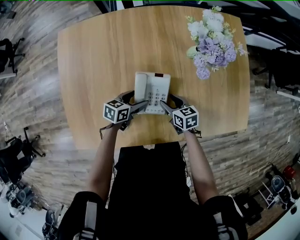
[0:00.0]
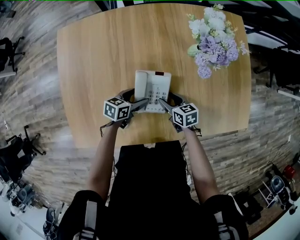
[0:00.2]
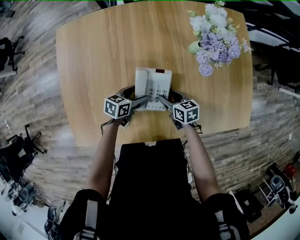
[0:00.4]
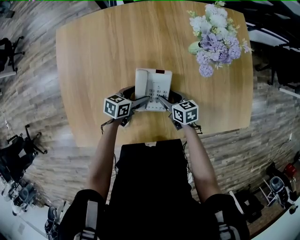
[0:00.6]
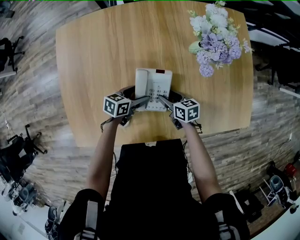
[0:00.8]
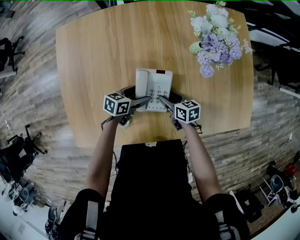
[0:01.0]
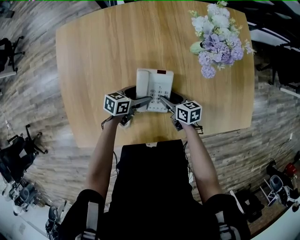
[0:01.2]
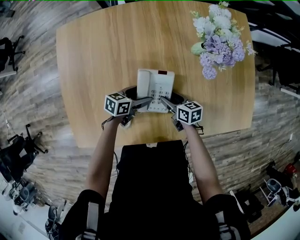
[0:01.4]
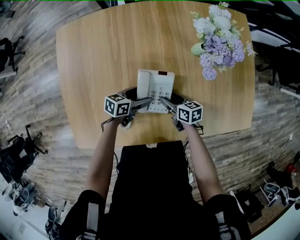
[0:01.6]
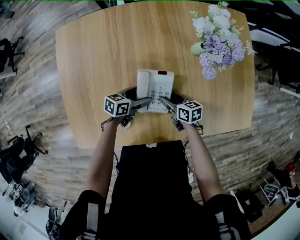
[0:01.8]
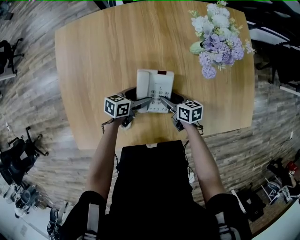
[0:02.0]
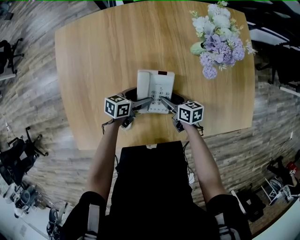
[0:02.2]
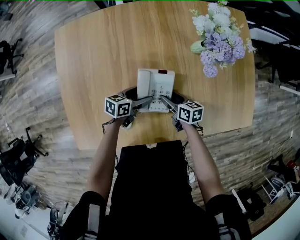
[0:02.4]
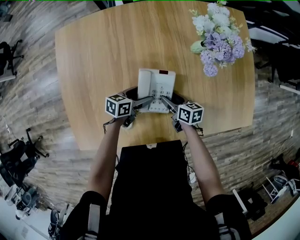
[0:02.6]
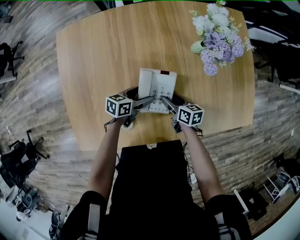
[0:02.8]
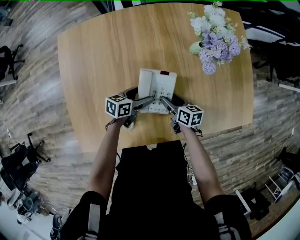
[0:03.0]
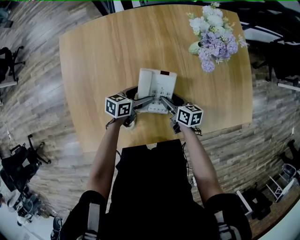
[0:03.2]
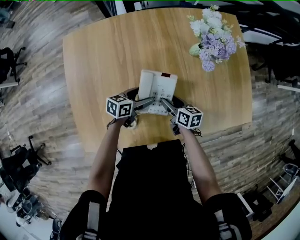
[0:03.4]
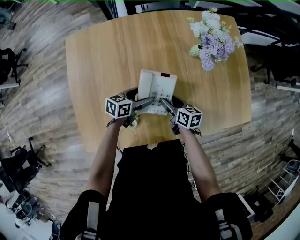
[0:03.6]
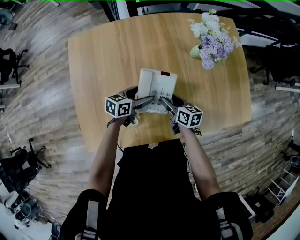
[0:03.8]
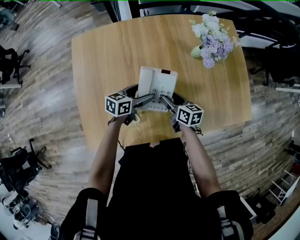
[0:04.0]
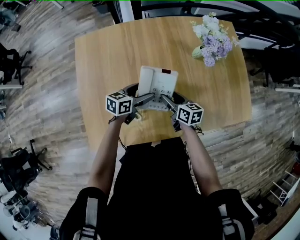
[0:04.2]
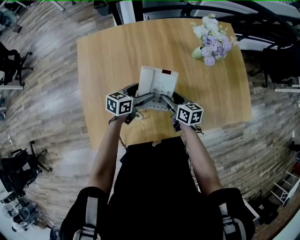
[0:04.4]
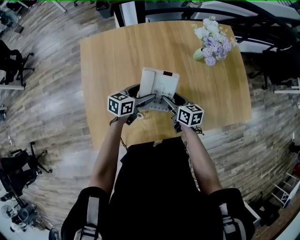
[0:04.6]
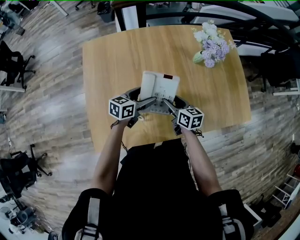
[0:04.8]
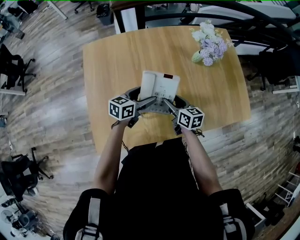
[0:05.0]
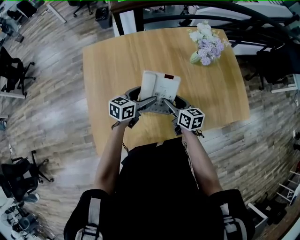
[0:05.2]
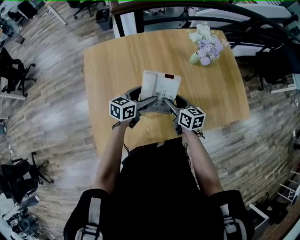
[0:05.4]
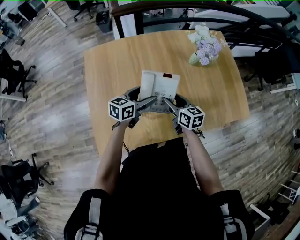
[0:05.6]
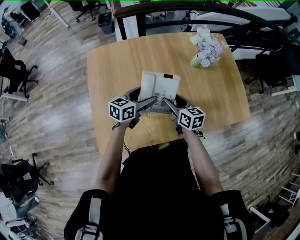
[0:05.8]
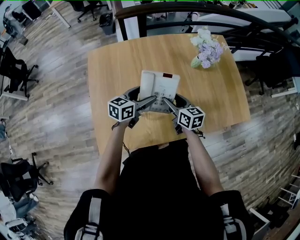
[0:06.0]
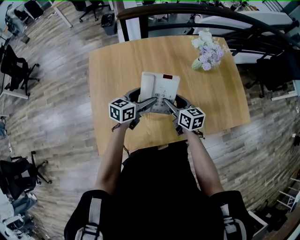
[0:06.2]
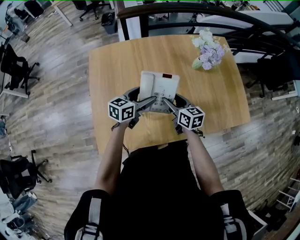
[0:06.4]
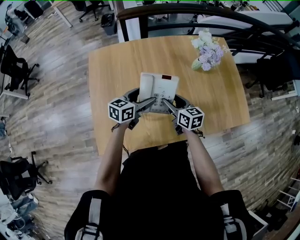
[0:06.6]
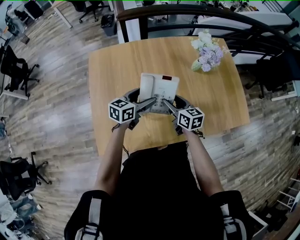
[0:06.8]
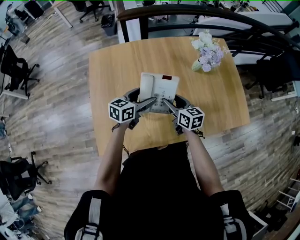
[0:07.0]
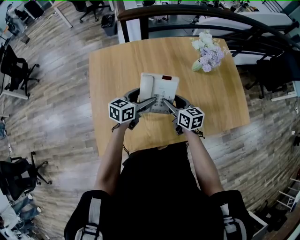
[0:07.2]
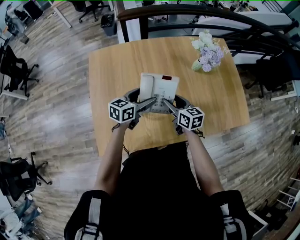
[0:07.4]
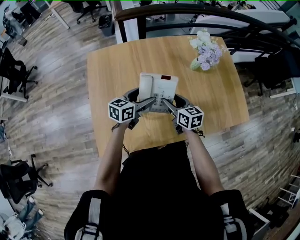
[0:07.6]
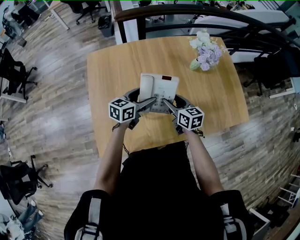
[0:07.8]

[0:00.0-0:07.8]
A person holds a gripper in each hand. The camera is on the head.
0:00.0 to 0:01.6: The grippers move only a little.
0:01.6 to 0:03.2: There are only small adjustments of the grippers.
0:03.2 to 0:04.6: Both grippers travel together upward and to the left, roughly 10 cm.
0:04.6 to 0:06.2: The grippers both shift upward by about 10 cm.
0:06.2 to 0:07.8: Neither gripper changes place.

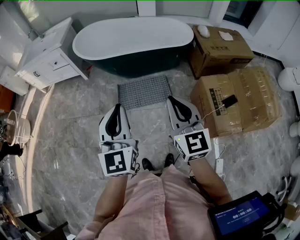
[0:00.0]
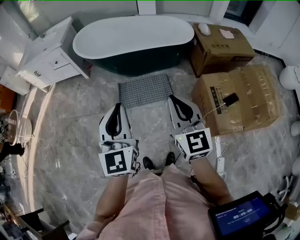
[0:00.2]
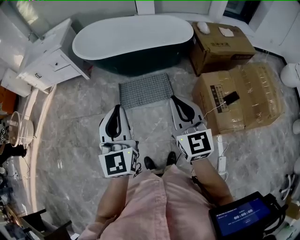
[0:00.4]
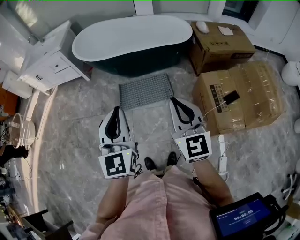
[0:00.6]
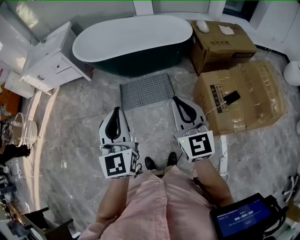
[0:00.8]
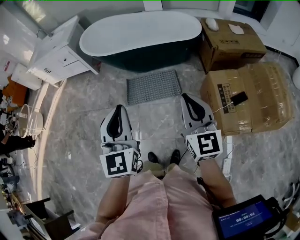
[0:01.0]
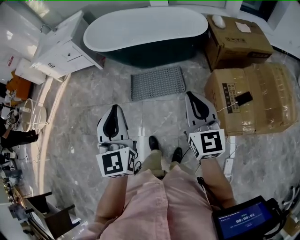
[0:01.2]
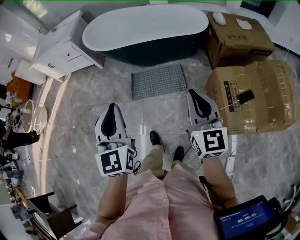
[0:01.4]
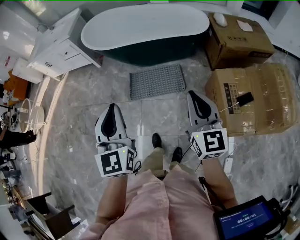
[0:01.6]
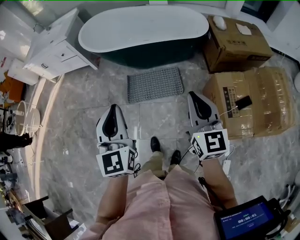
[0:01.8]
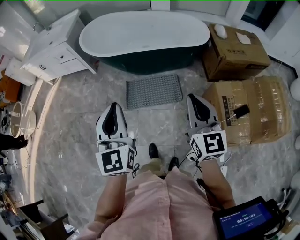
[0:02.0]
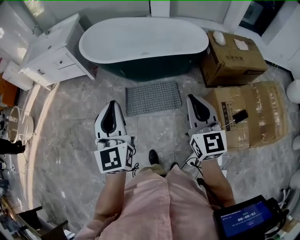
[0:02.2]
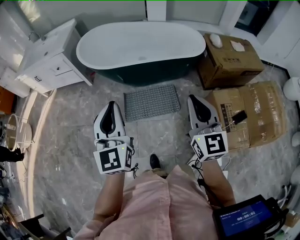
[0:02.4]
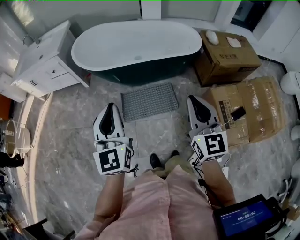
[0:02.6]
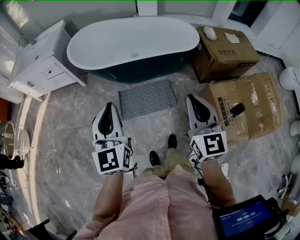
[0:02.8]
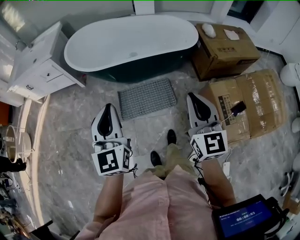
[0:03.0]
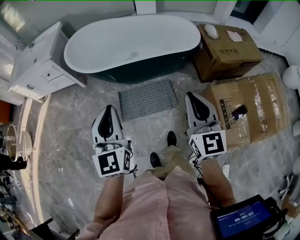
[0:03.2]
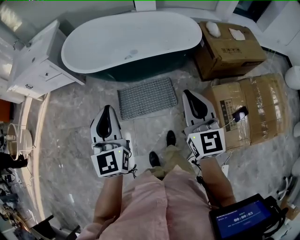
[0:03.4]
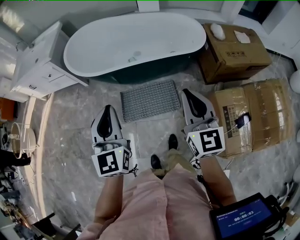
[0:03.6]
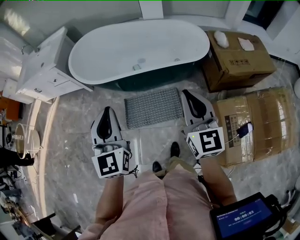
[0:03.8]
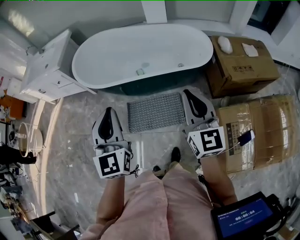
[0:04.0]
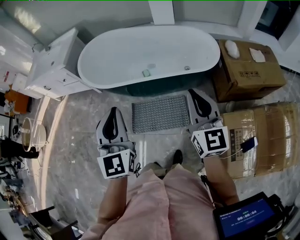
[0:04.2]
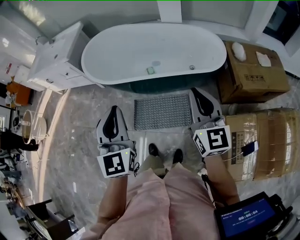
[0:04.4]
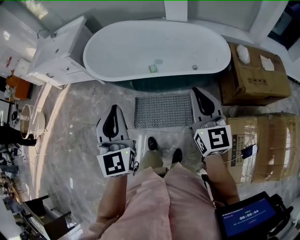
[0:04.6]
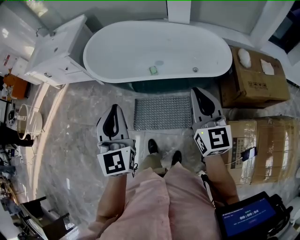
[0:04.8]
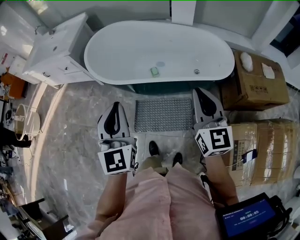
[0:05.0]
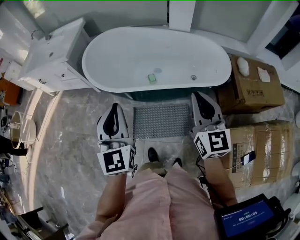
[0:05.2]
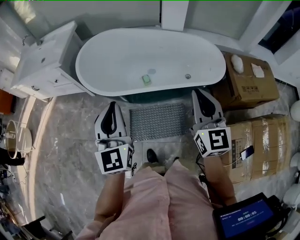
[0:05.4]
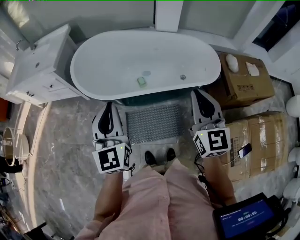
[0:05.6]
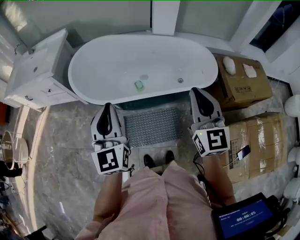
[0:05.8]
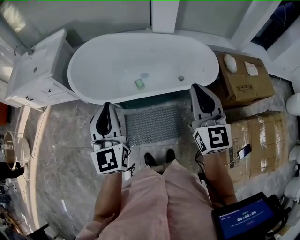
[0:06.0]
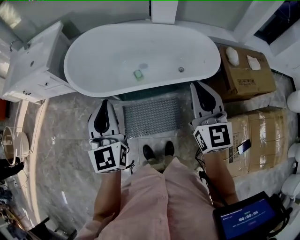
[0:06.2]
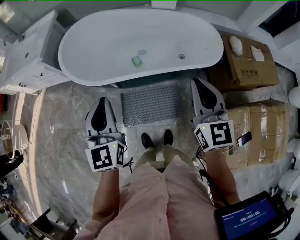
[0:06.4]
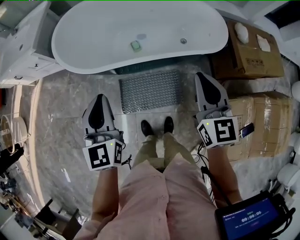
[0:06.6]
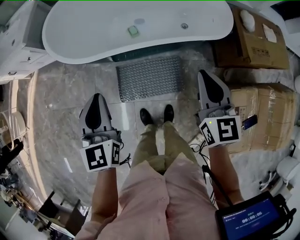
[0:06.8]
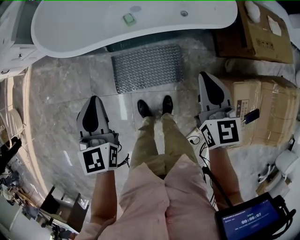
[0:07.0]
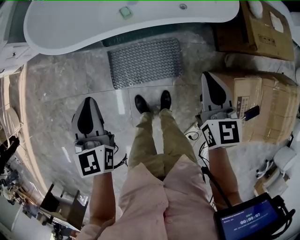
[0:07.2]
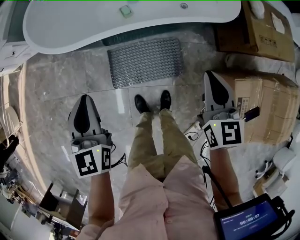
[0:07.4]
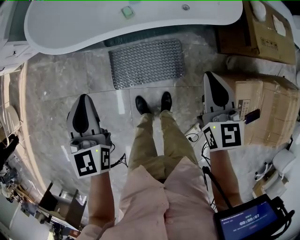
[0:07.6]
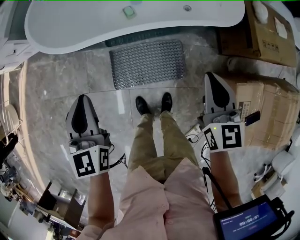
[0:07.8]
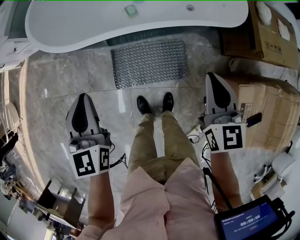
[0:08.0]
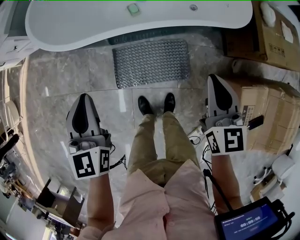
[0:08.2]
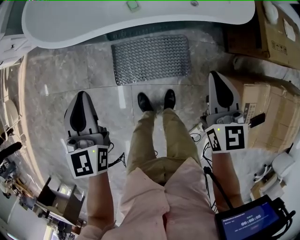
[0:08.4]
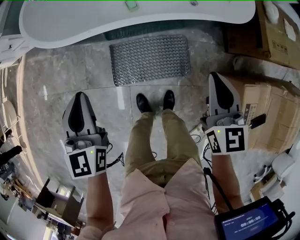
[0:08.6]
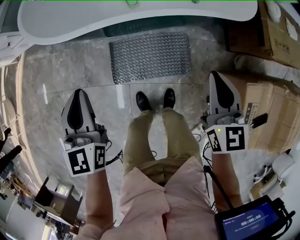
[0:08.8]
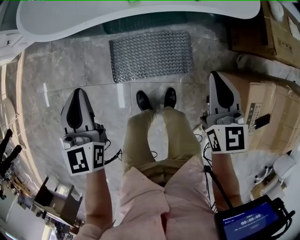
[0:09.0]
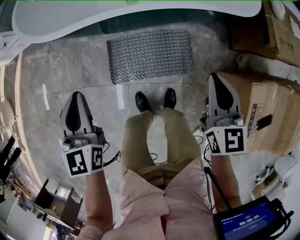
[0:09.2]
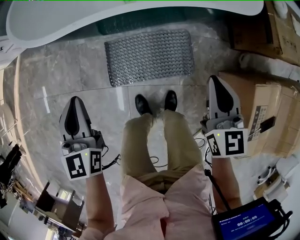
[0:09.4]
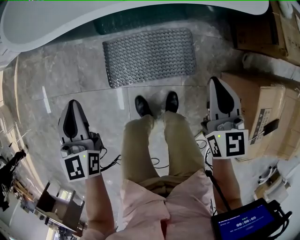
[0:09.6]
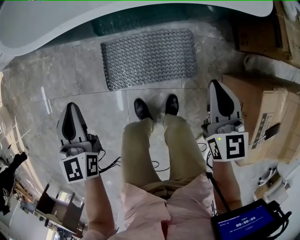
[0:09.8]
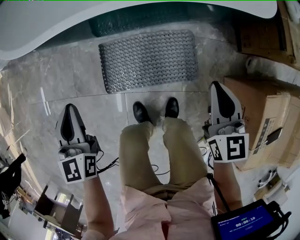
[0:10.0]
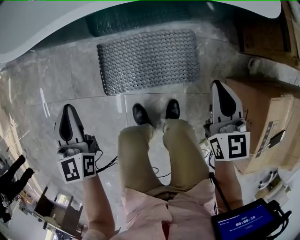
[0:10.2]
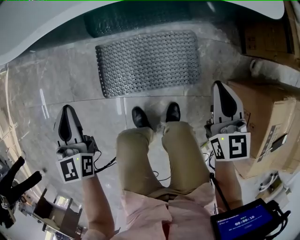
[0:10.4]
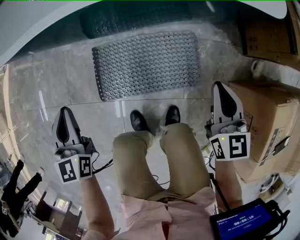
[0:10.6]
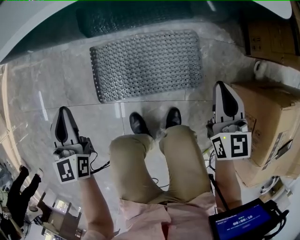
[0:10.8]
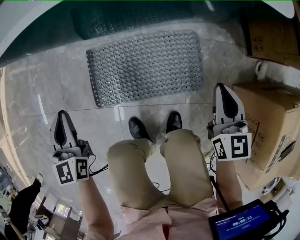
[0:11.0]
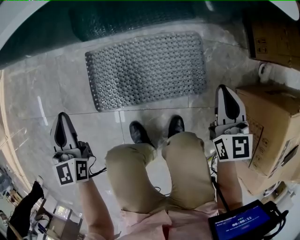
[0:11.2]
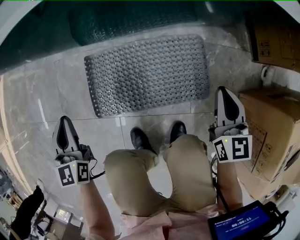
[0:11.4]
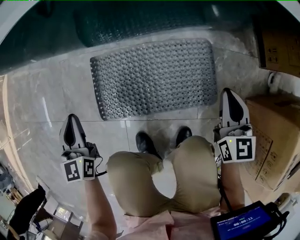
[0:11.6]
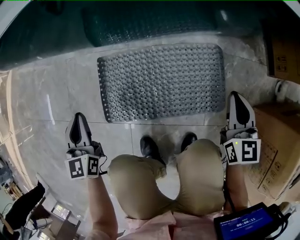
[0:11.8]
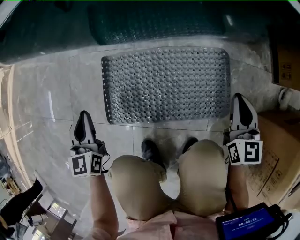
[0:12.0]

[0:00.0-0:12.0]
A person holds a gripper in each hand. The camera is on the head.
0:00.0 to 0:01.6: The right gripper moves to the right, approximately 10 cm.
0:01.6 to 0:03.0: The grippers both shift forward and to the left by approximately 15 cm.
0:03.0 to 0:04.4: The right gripper goes about 20 cm forward; the left gripper moves forward and to the right, some 20 cm.
0:04.4 to 0:06.0: The grippers both shift forward and to the left by approximately 20 cm.
0:06.0 to 0:07.6: Both grippers move downward, roughly 25 cm. The left gripper swivels some 20 degrees. The right gripper rotates roughly 30 degrees.
0:07.6 to 0:09.0: The two grippers go some 10 cm downward.
0:09.0 to 0:10.4: The grippers both shift downward by some 20 cm.
0:10.4 to 0:12.0: Both grippers move downward, some 25 cm.

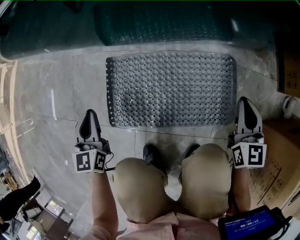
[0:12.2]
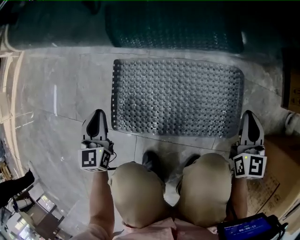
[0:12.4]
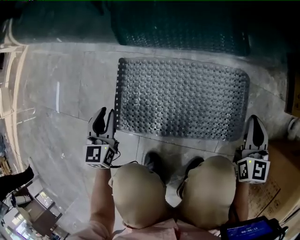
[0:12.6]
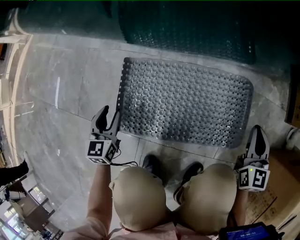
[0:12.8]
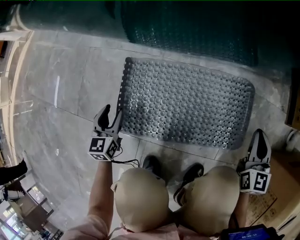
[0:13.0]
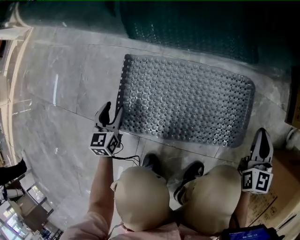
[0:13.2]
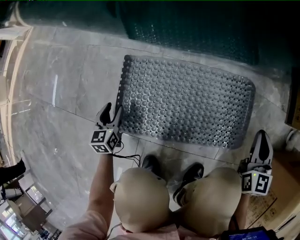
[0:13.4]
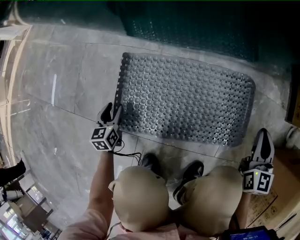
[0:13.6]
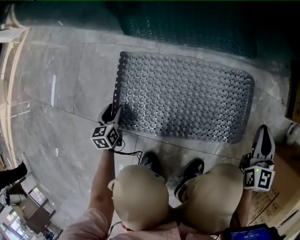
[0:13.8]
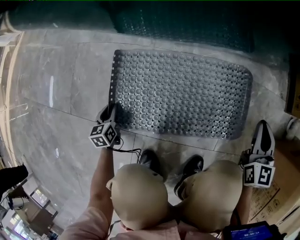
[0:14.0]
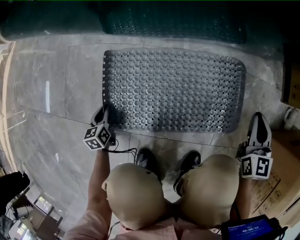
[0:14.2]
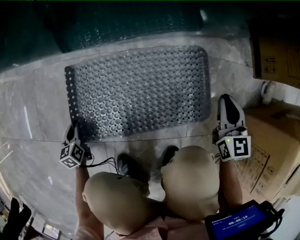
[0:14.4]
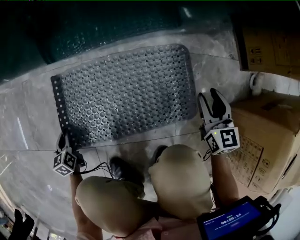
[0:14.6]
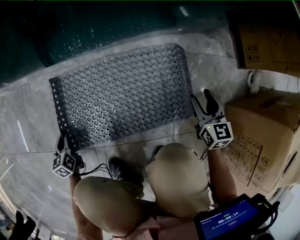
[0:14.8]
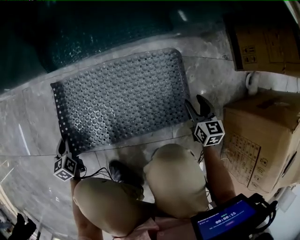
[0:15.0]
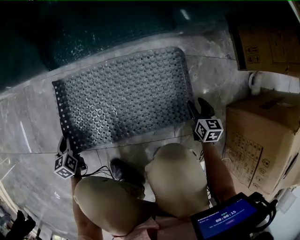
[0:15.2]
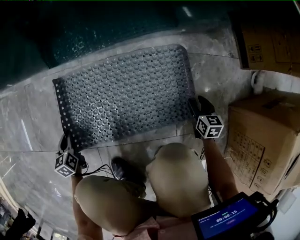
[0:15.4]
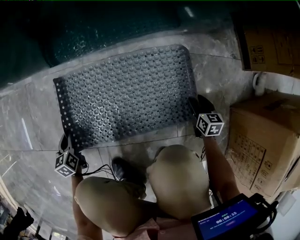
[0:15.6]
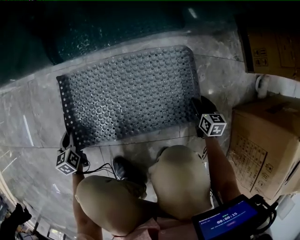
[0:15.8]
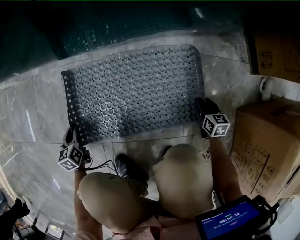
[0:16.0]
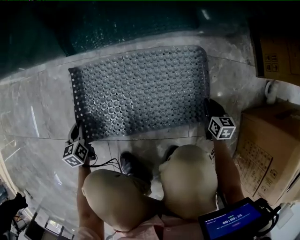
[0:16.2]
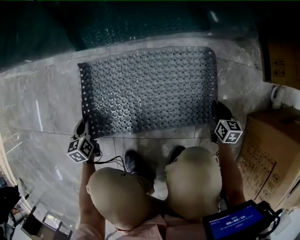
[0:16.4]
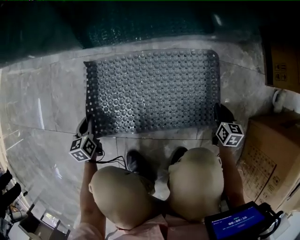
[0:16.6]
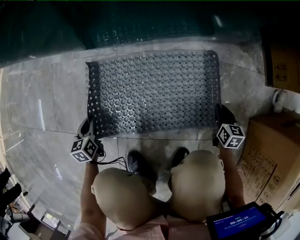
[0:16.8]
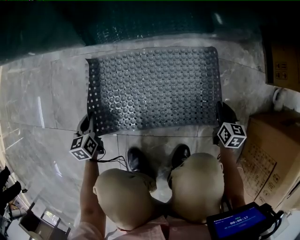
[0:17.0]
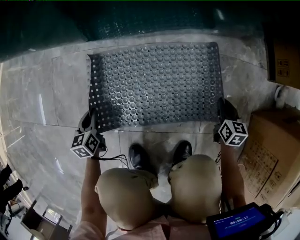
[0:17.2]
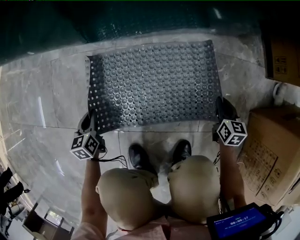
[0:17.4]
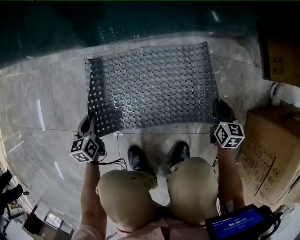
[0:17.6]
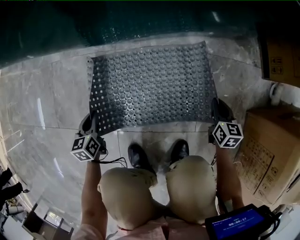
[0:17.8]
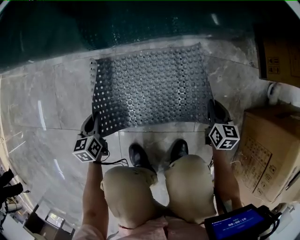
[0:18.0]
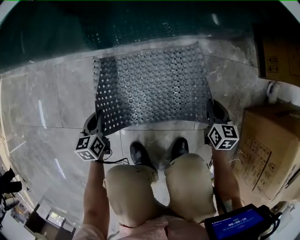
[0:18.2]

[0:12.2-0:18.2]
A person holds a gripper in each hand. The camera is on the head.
0:12.2 to 0:13.8: The right gripper moves roughly 5 cm, while the left gripper shifts roughly 25 cm downward, rotates approximately 20 degrees, and opens up.
0:13.8 to 0:15.2: The right gripper shifts about 20 cm downward and to the right, turns by about 30 degrees, and opens; the left gripper closes up.
0:15.2 to 0:16.6: The right gripper closes.
0:16.6 to 0:18.2: The left gripper heads upward and to the right, covering about 10 cm. Meanwhile the right gripper shifts roughly 10 cm upward and to the left.
